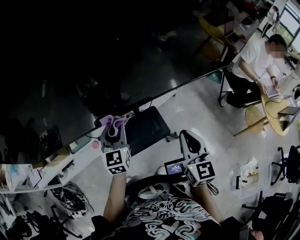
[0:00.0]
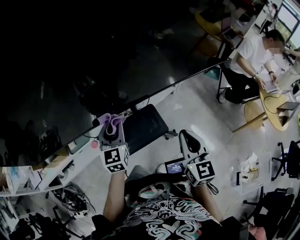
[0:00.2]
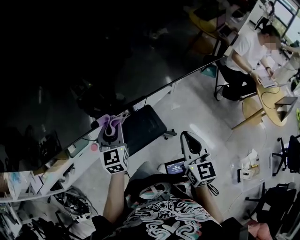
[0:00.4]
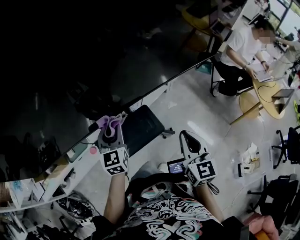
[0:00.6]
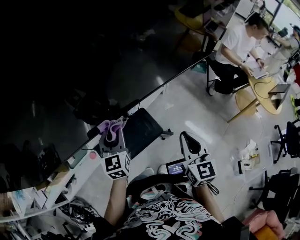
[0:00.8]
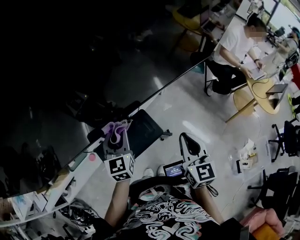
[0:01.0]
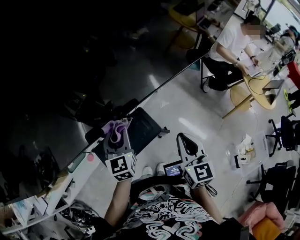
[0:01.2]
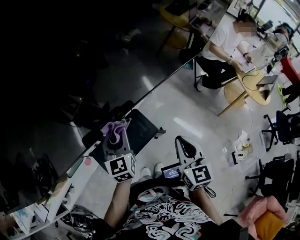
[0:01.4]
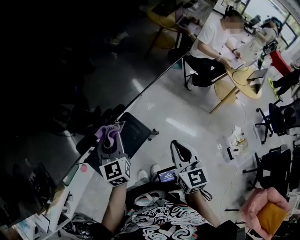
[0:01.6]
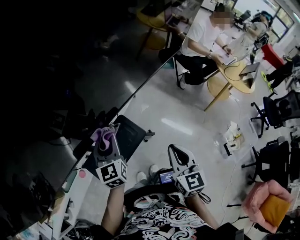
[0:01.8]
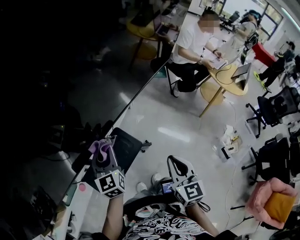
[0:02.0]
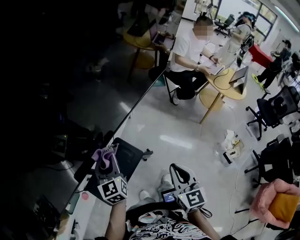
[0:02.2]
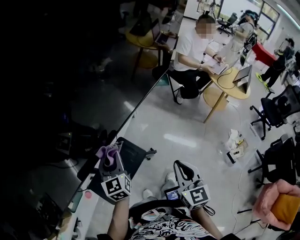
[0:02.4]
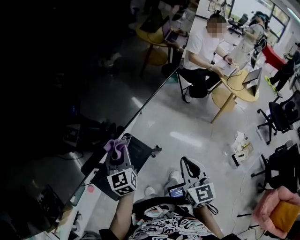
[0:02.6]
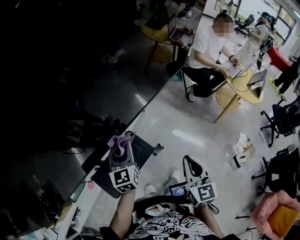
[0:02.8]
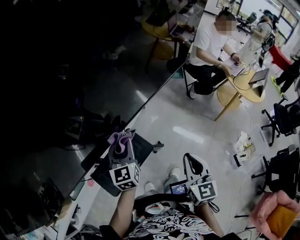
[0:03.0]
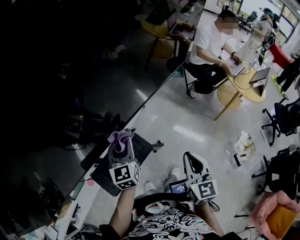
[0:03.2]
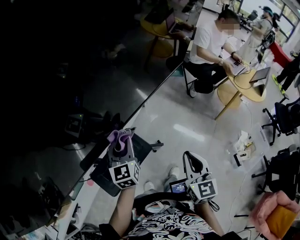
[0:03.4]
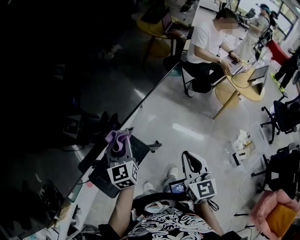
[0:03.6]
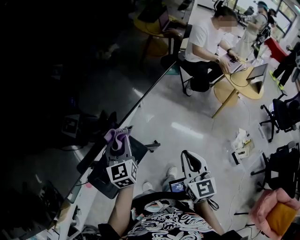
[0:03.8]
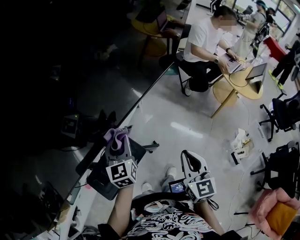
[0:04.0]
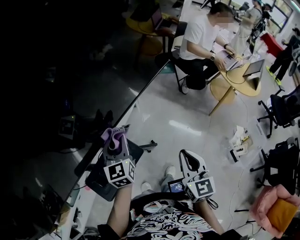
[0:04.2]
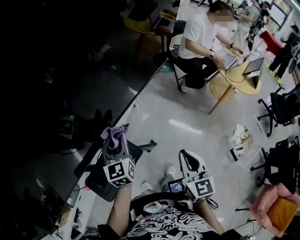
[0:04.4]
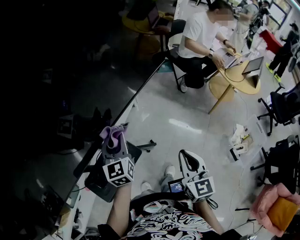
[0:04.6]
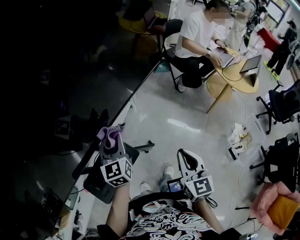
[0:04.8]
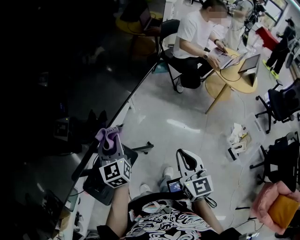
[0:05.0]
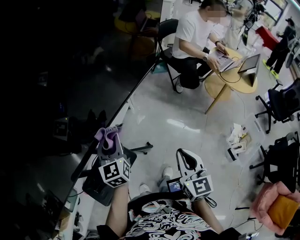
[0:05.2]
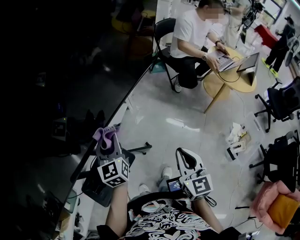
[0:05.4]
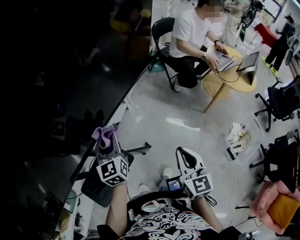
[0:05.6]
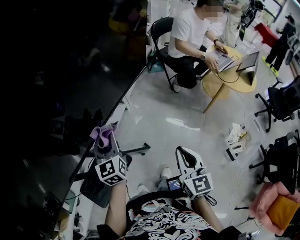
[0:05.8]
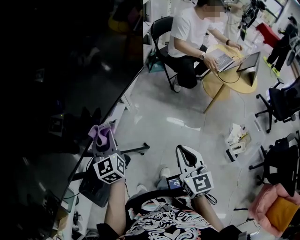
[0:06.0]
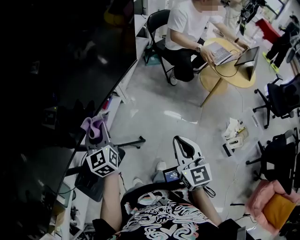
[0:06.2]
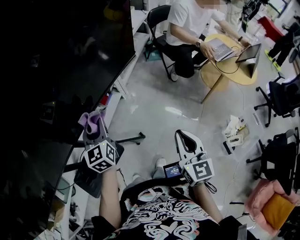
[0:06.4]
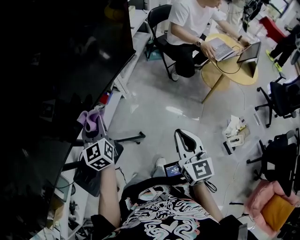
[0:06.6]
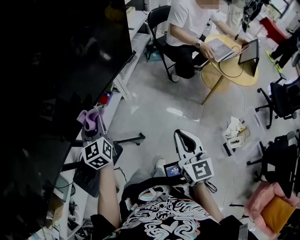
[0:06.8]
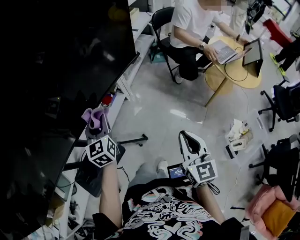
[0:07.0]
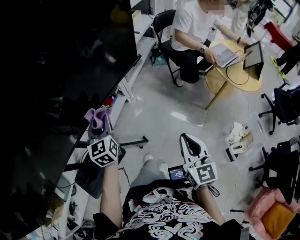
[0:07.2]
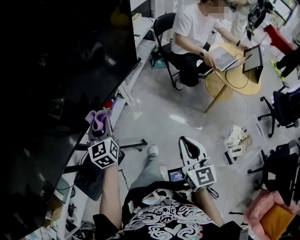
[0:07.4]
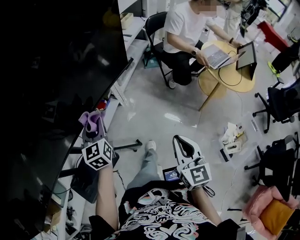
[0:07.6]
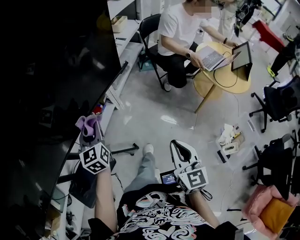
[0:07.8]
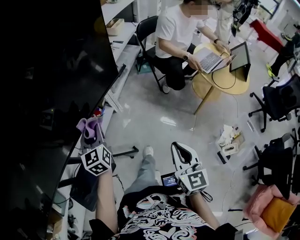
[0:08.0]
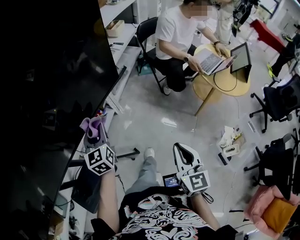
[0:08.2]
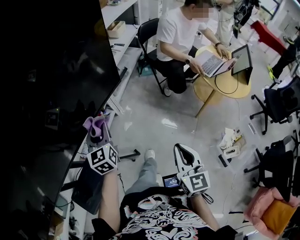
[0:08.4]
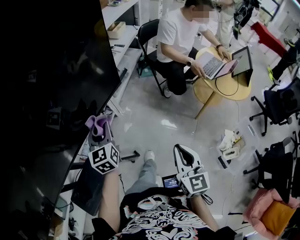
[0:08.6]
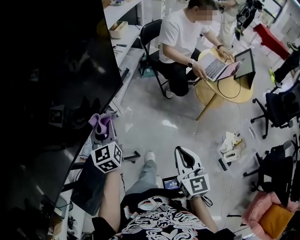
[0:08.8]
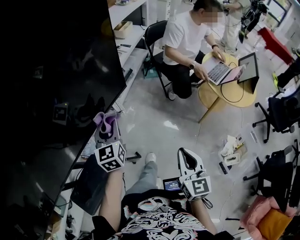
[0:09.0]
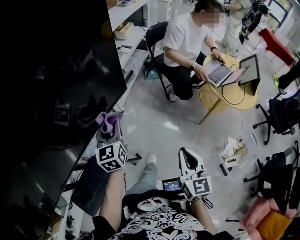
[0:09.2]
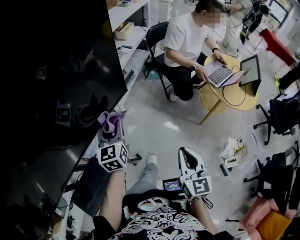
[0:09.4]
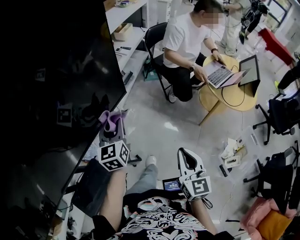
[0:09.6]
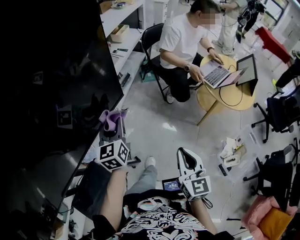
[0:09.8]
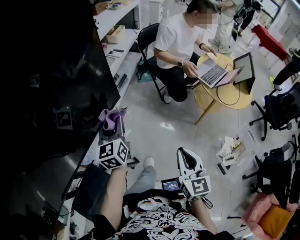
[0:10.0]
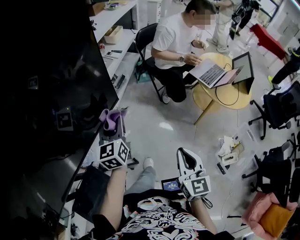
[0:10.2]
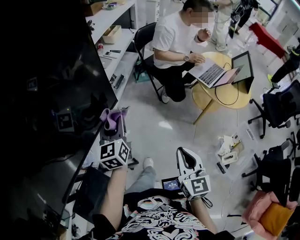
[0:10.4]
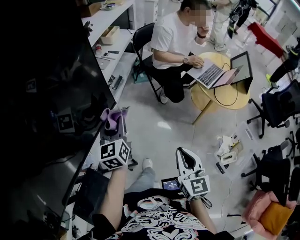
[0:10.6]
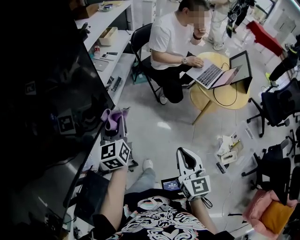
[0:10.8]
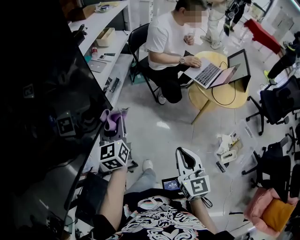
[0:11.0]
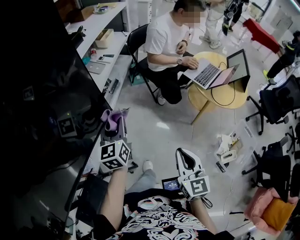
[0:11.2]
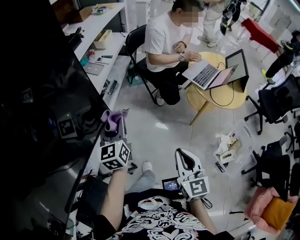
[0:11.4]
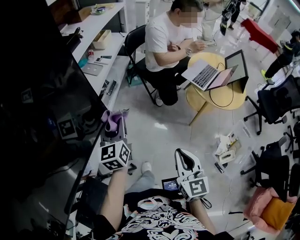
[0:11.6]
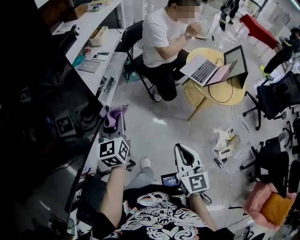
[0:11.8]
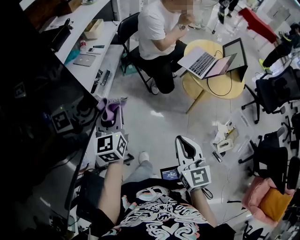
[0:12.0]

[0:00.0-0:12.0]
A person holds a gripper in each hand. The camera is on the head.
0:00.0 to 0:01.6: The right gripper turns by roughly 20 degrees.
0:01.6 to 0:03.0: Both grippers move to the right, roughly 10 cm.
0:03.0 to 0:04.4: The left gripper travels to the right and forward by some 10 cm. Meanwhile the right gripper goes about 5 cm to the right.
0:04.4 to 0:06.0: Both grippers travel together to the right and forward, some 10 cm.
0:06.0 to 0:07.6: The left gripper ends up approximately 5 cm from where it was; the right gripper is displaced to the right by approximately 5 cm.
0:07.6 to 0:09.0: The left gripper moves to the right and forward, about 10 cm. The right gripper moves to the right, roughly 5 cm.
0:09.0 to 0:10.4: The right gripper travels forward by approximately 5 cm. Meanwhile the left gripper is displaced forward and to the right by roughly 10 cm.
0:10.4 to 0:12.0: The right gripper shifts about 5 cm forward; the left gripper travels to the right and forward by approximately 10 cm.

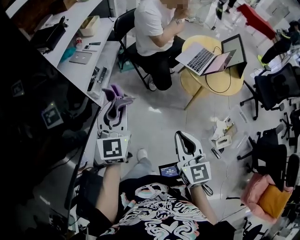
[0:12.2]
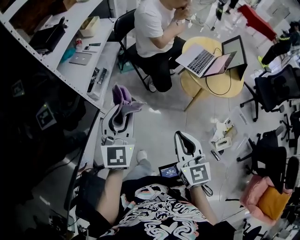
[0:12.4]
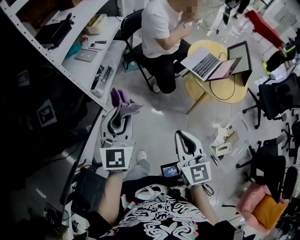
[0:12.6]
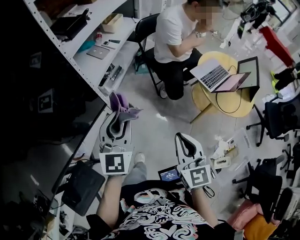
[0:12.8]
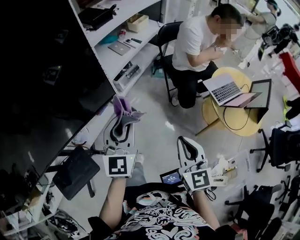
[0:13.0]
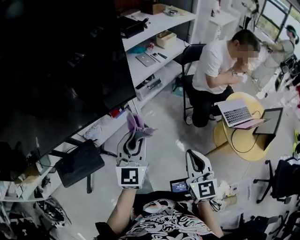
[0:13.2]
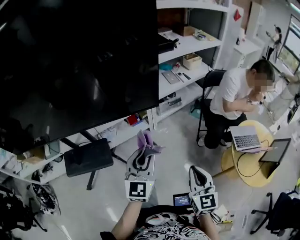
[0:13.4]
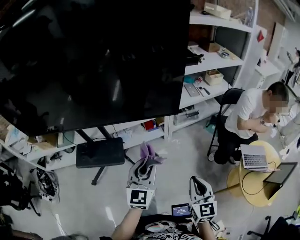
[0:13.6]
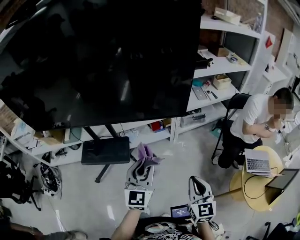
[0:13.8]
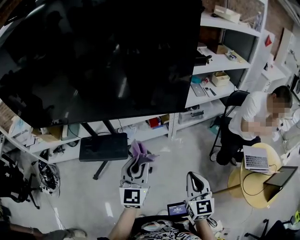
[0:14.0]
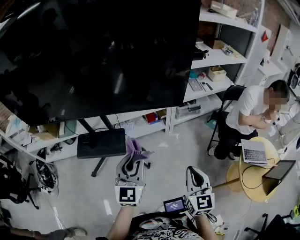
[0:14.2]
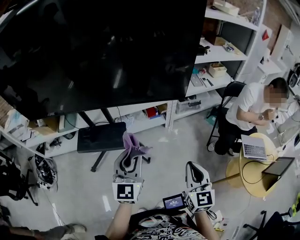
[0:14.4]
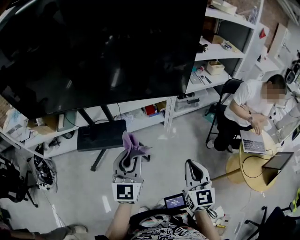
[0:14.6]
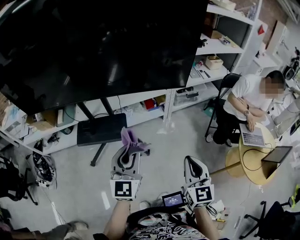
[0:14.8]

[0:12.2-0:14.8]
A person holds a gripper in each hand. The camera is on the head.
0:12.2 to 0:13.4: The right gripper ends up approximately 5 cm from where it was, and rotates roughly 40 degrees. The left gripper ends up some 20 cm from where it was, and changes its angle by some 40 degrees.
0:13.4 to 0:14.8: Both grippers travel together to the left and backward, some 20 cm.

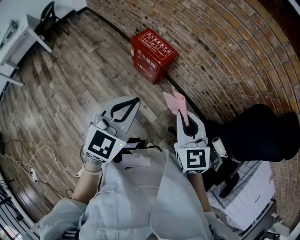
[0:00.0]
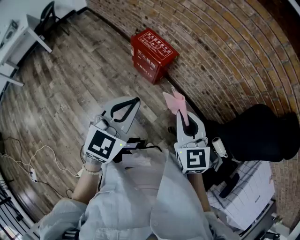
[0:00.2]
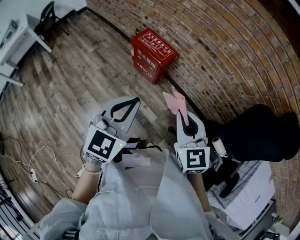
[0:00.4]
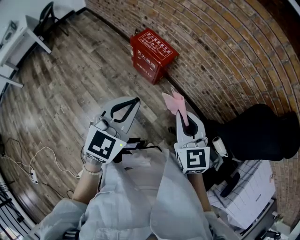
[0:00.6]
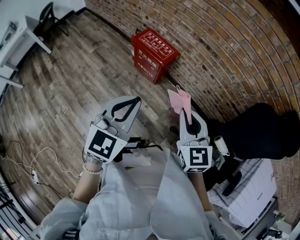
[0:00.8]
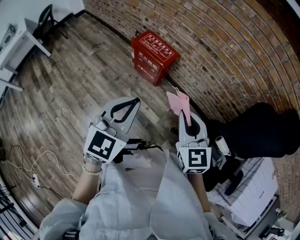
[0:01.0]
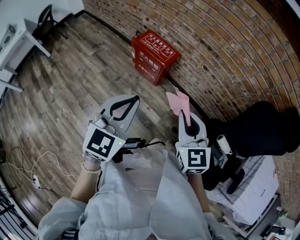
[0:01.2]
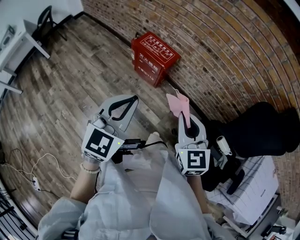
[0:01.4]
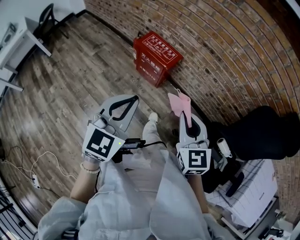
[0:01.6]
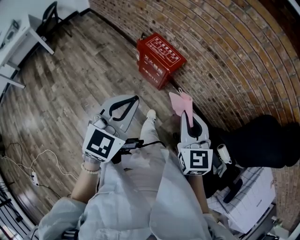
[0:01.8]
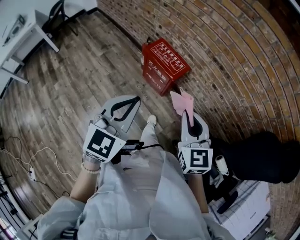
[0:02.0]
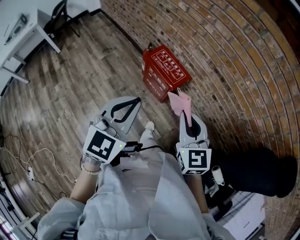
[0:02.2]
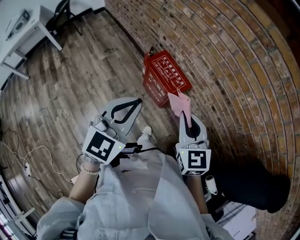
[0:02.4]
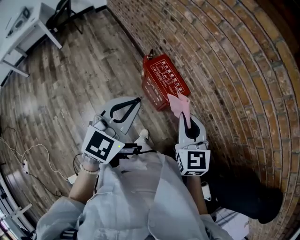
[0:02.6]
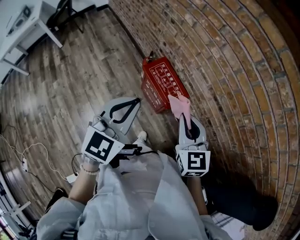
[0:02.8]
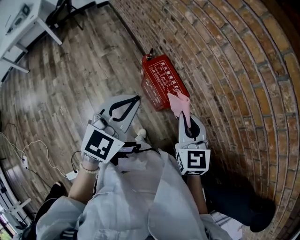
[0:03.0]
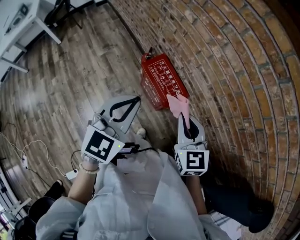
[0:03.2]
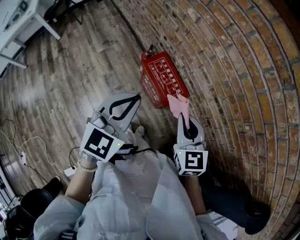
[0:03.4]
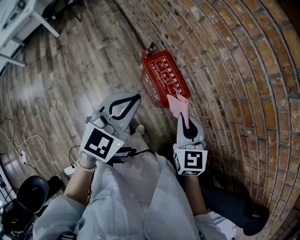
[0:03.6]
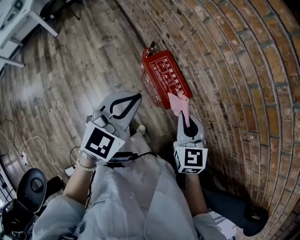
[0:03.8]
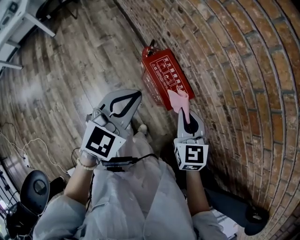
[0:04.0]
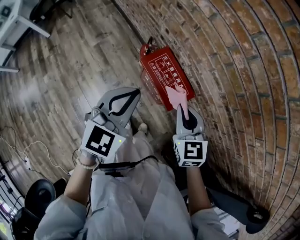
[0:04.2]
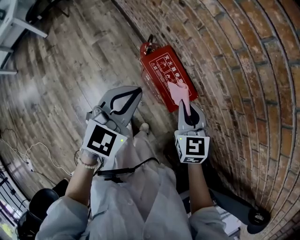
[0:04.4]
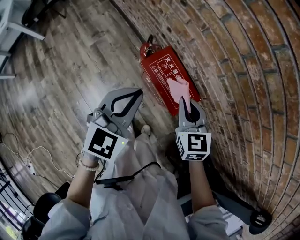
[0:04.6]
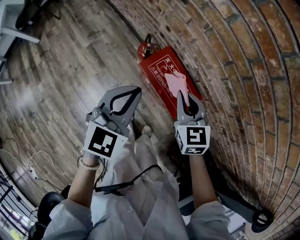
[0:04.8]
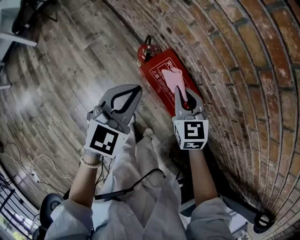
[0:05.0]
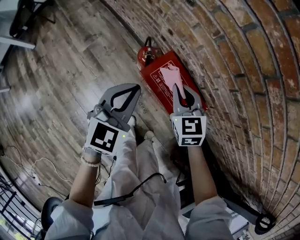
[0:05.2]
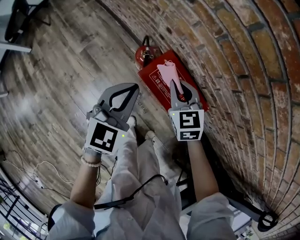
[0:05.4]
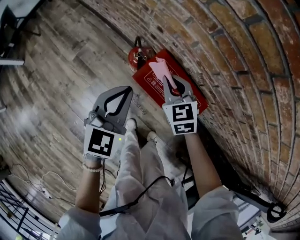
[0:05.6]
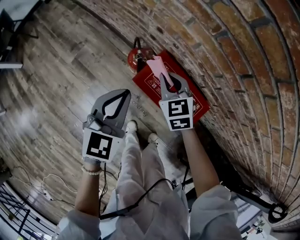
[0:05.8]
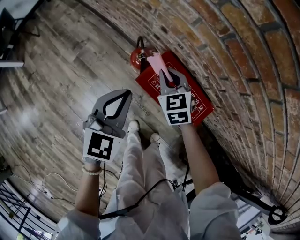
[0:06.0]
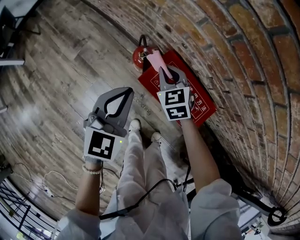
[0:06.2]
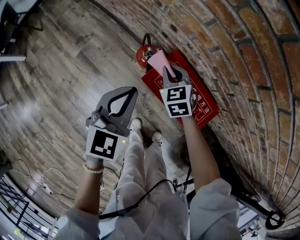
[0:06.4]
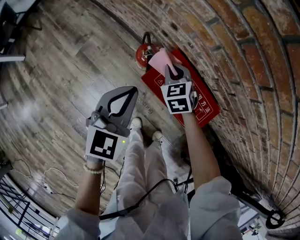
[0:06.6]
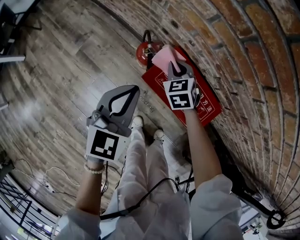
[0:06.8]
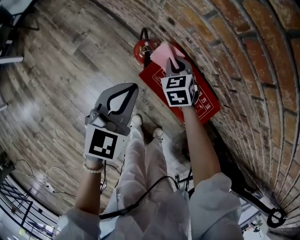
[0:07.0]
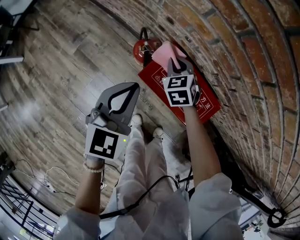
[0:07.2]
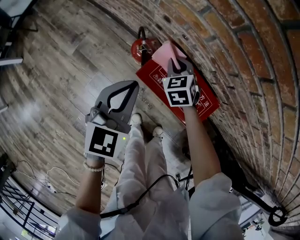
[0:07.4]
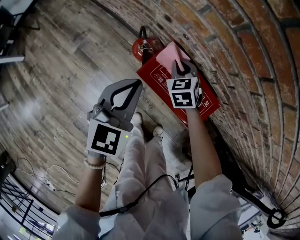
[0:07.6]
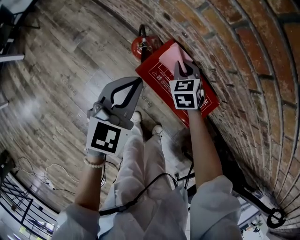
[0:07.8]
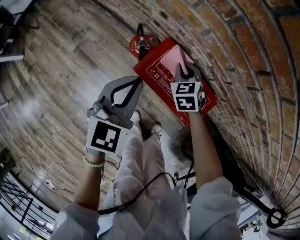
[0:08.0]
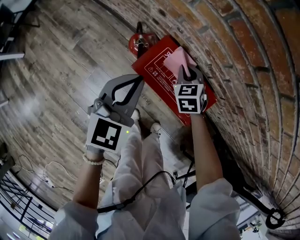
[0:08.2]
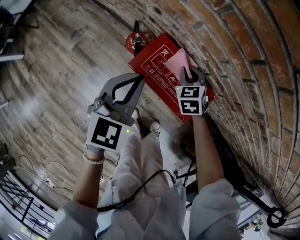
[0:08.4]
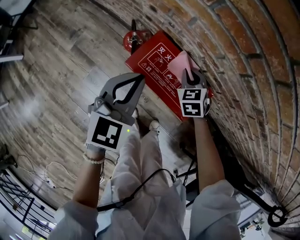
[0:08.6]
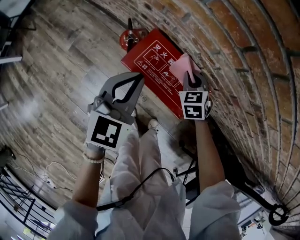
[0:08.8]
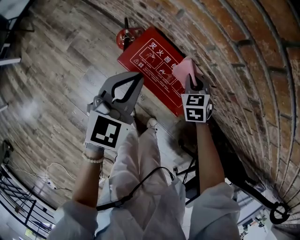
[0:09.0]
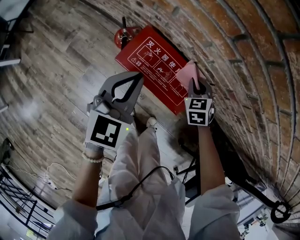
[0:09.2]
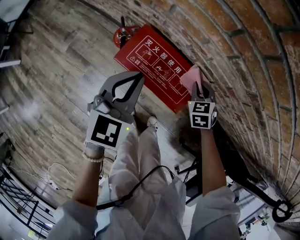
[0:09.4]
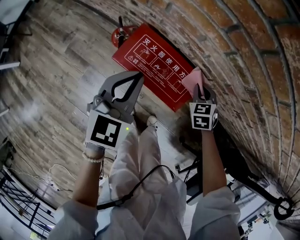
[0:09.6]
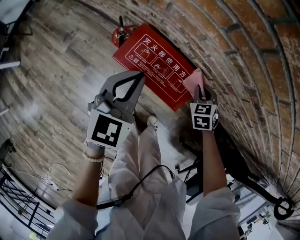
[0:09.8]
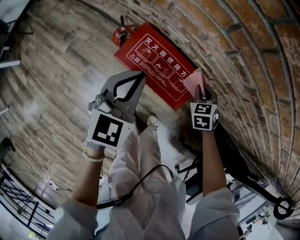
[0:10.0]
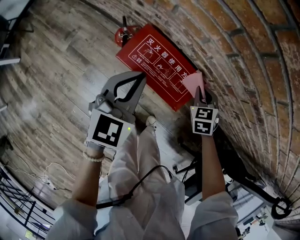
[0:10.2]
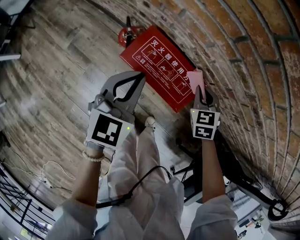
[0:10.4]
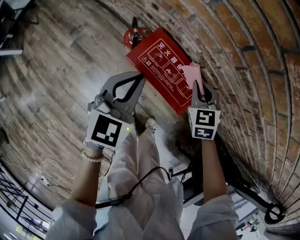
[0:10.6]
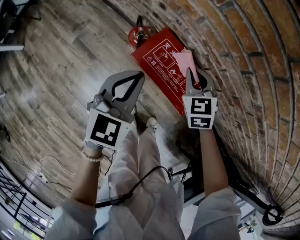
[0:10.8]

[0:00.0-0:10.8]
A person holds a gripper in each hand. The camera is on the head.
0:00.0 to 0:01.6: The left gripper moves to the left, roughly 5 cm.
0:01.6 to 0:03.0: Both grippers move forward, some 30 cm.
0:03.0 to 0:04.6: Both grippers travel together forward and downward, some 25 cm.
0:04.6 to 0:06.2: Both grippers move downward, forward and to the left, roughly 25 cm.
0:06.2 to 0:07.8: The right gripper is displaced to the right by approximately 10 cm.
0:07.8 to 0:09.2: The right gripper travels to the right by approximately 20 cm. The left gripper travels to the right by about 10 cm.
0:09.2 to 0:10.8: The left gripper is displaced to the left by approximately 5 cm. The right gripper is displaced to the left and upward by roughly 15 cm.
